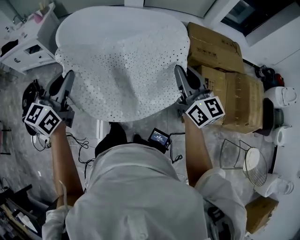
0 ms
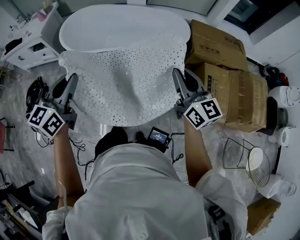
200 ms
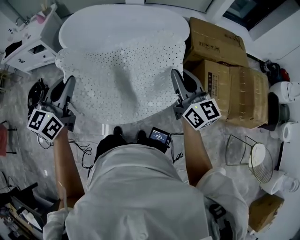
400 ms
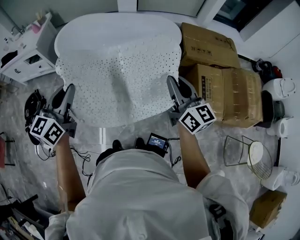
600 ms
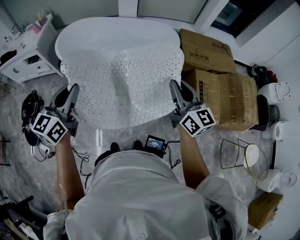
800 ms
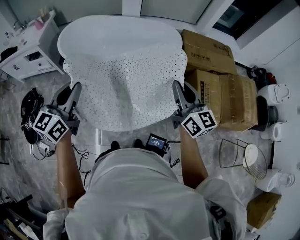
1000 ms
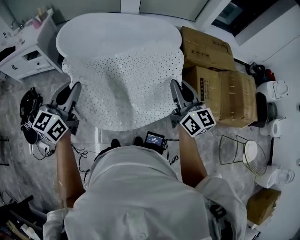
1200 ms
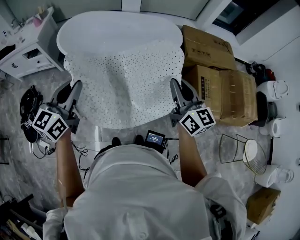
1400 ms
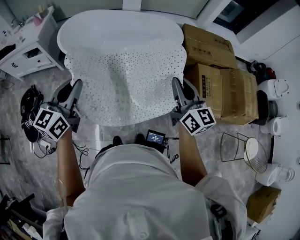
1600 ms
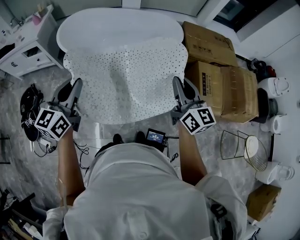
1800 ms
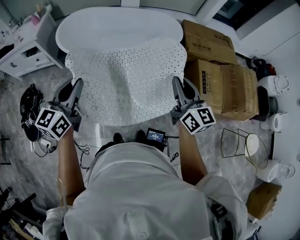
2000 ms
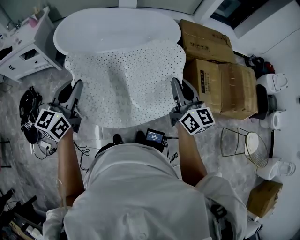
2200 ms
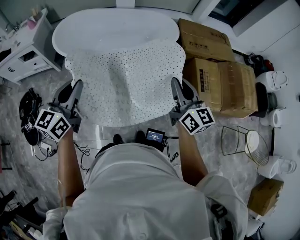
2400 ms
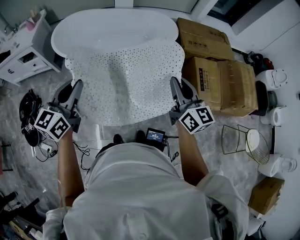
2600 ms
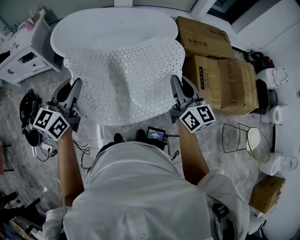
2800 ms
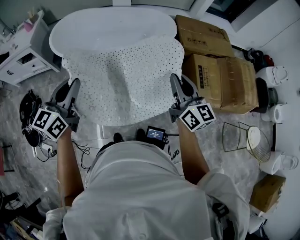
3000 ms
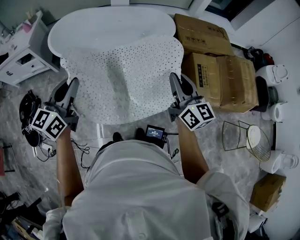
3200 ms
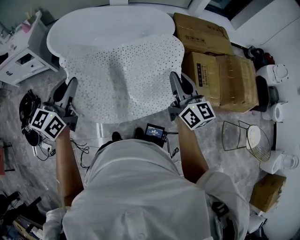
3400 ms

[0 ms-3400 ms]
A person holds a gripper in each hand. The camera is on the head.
0 ms to 1600 ms: The grippers both shift backward and to the left by roughly 10 cm.
1600 ms to 3400 ms: The left gripper moves some 5 cm, while the right gripper shifts some 5 cm to the right.

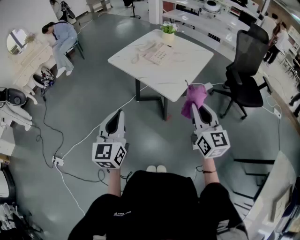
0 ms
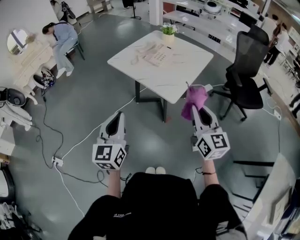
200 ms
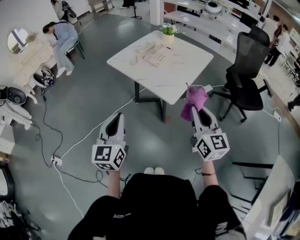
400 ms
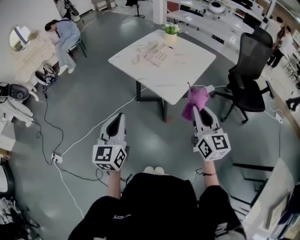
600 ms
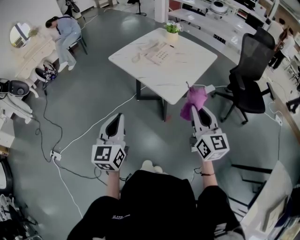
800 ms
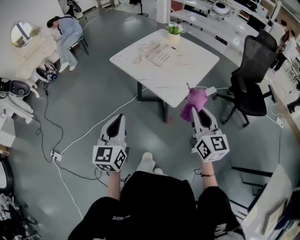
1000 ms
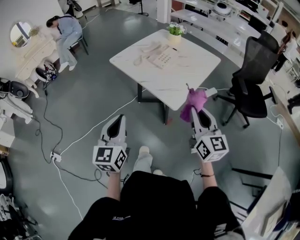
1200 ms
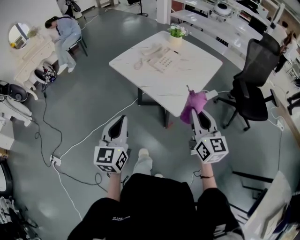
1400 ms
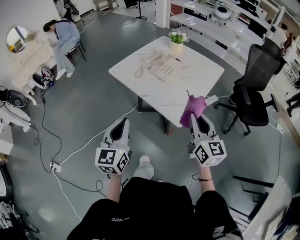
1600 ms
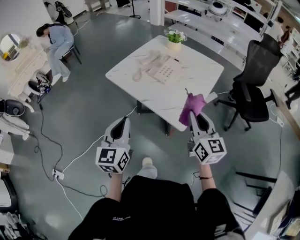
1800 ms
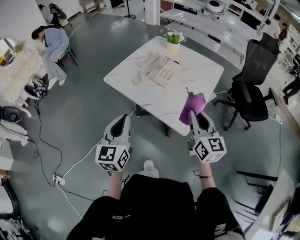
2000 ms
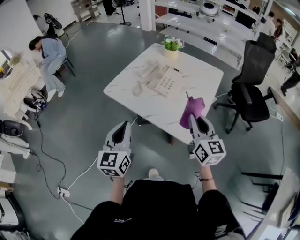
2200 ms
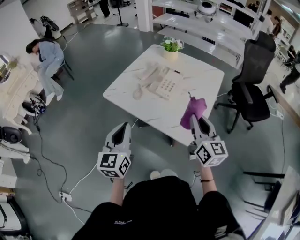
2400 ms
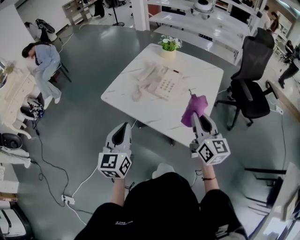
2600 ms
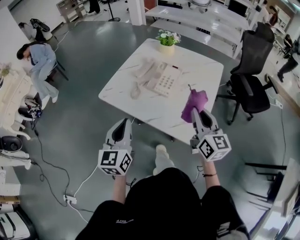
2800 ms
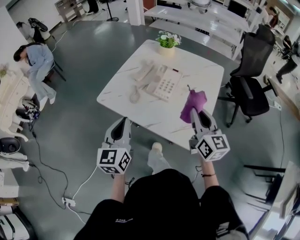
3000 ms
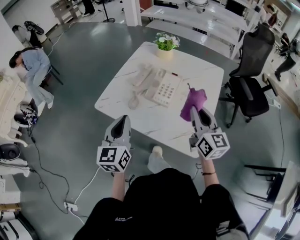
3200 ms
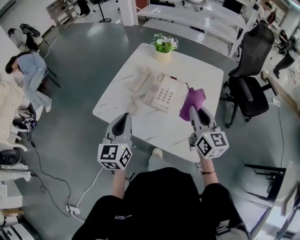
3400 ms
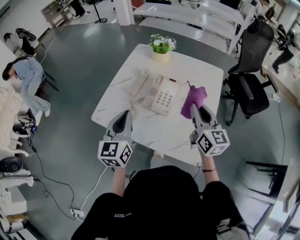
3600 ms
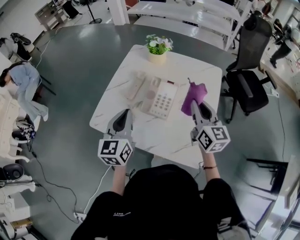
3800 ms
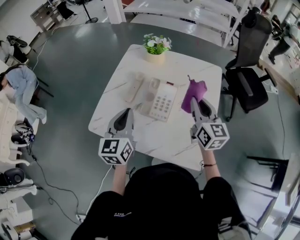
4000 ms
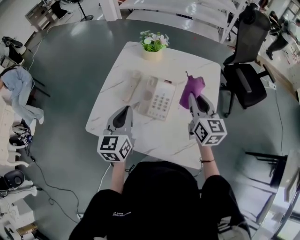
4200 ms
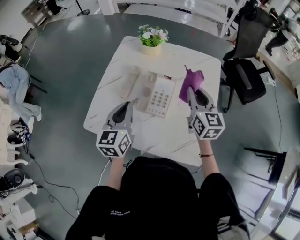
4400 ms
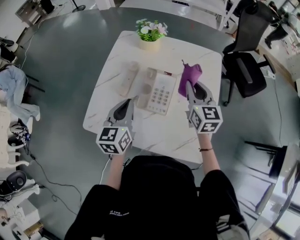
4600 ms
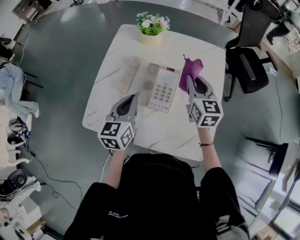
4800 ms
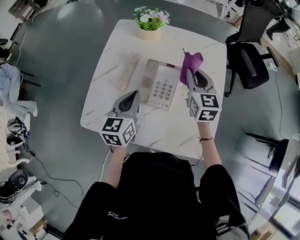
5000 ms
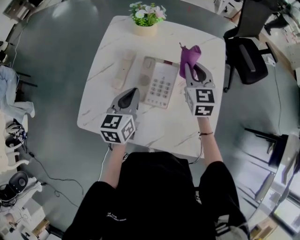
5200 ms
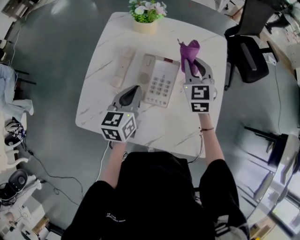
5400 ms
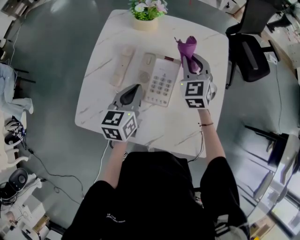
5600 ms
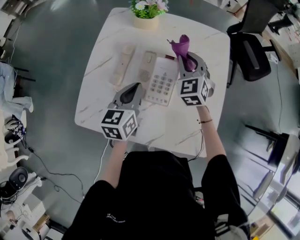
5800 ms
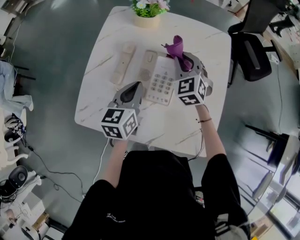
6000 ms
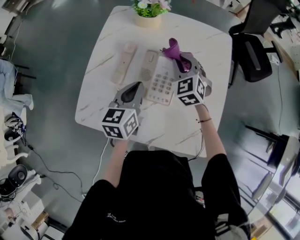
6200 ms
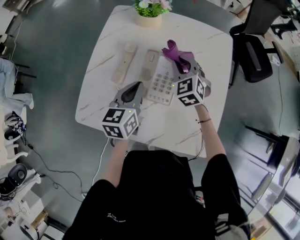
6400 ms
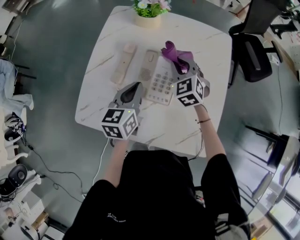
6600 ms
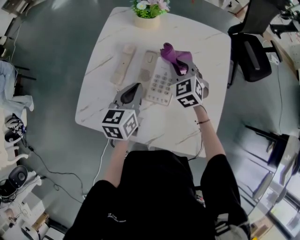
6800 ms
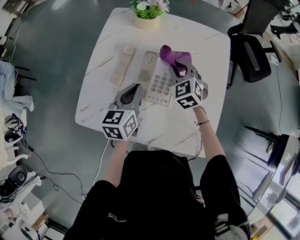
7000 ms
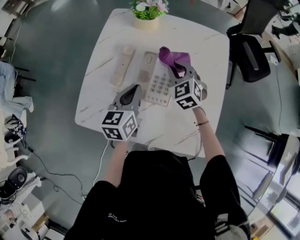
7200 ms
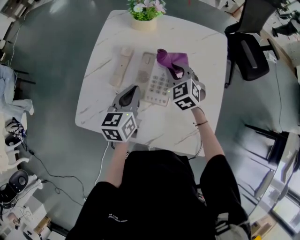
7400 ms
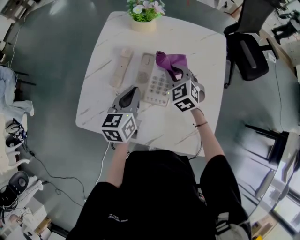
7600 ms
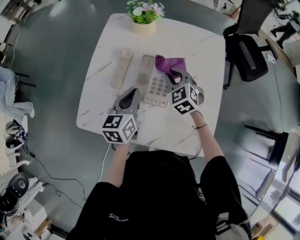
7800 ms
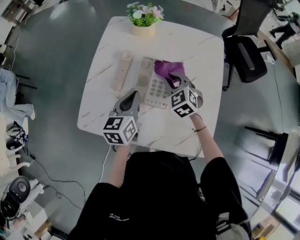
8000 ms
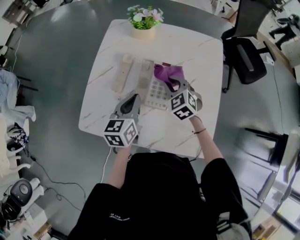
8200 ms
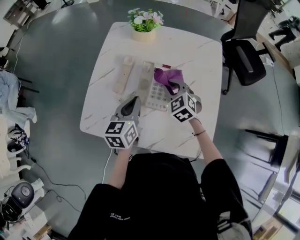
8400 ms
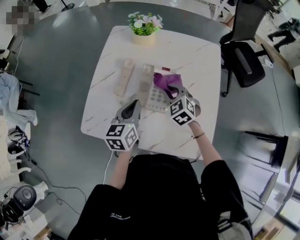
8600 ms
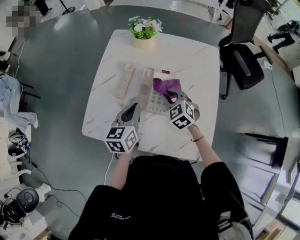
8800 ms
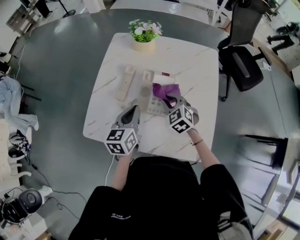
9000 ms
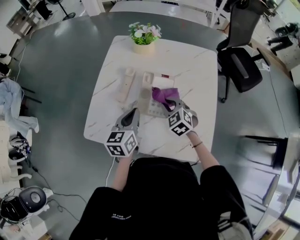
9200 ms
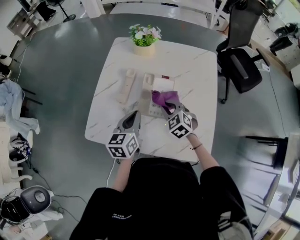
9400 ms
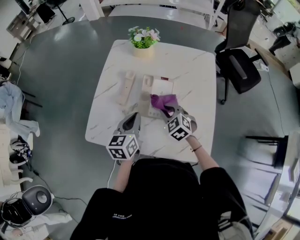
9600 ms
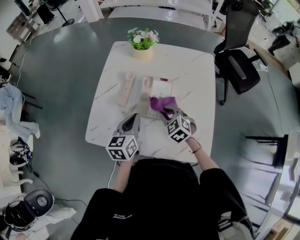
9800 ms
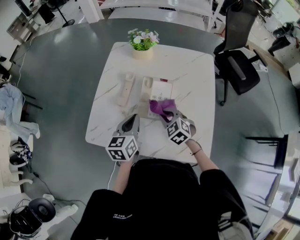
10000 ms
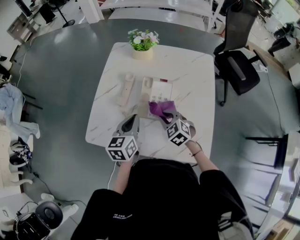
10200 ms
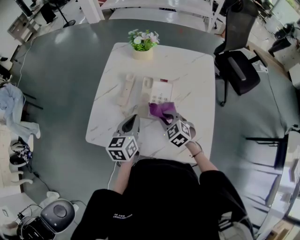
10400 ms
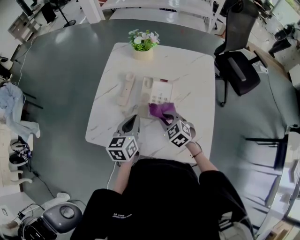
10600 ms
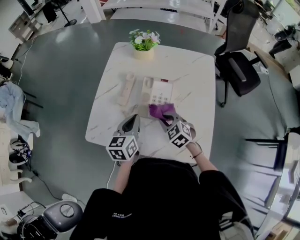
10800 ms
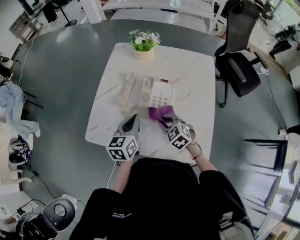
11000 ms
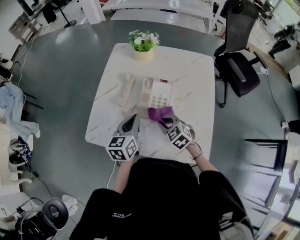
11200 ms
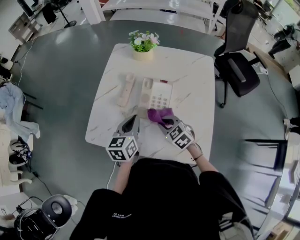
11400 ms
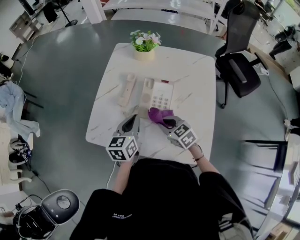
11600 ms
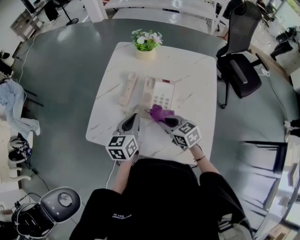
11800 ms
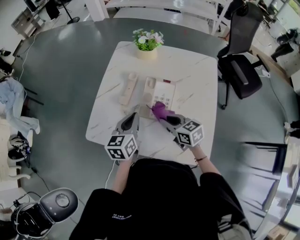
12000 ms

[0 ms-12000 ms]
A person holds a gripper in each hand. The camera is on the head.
0 ms to 1600 ms: Both grippers travel together forward, roughly 15 cm.
1600 ms to 3000 ms: Both grippers move forward, about 20 cm.
3000 ms to 4400 ms: The two grippers go about 25 cm forward.
4400 ms to 6000 ms: The left gripper shifts some 10 cm downward and forward, while the right gripper travels downward, forward and to the left by roughly 15 cm, and rolls counterclockwise, seen from behind, by about 40 degrees.
6000 ms to 7600 ms: The right gripper moves roughly 5 cm.
7600 ms to 9000 ms: The right gripper shifts approximately 5 cm backward.
9000 ms to 10400 ms: The right gripper moves backward, some 5 cm.
10400 ms to 12000 ms: The right gripper rotates approximately 40 degrees.

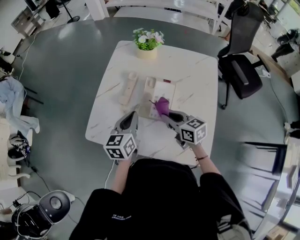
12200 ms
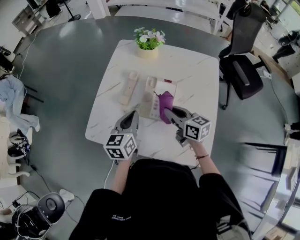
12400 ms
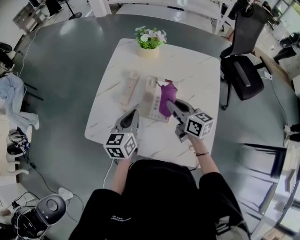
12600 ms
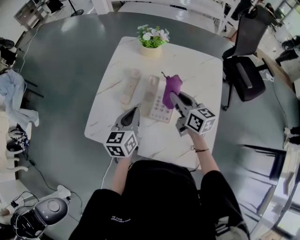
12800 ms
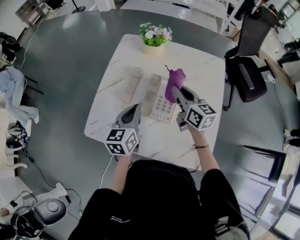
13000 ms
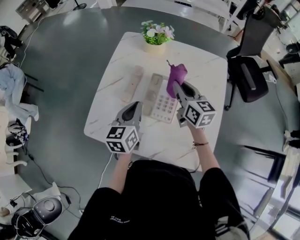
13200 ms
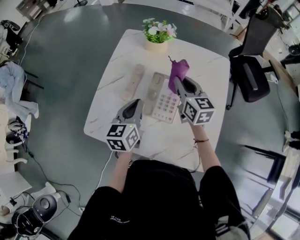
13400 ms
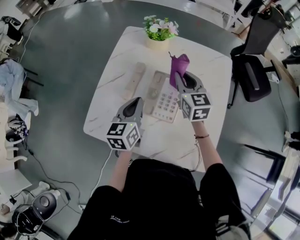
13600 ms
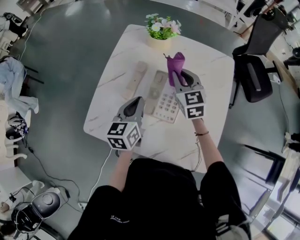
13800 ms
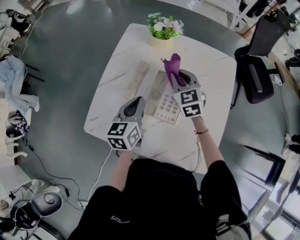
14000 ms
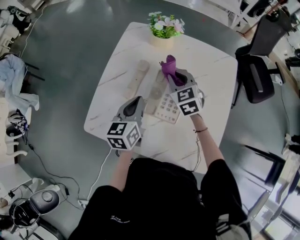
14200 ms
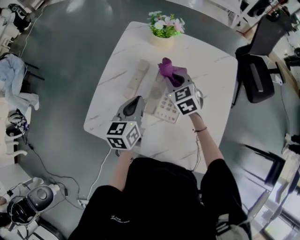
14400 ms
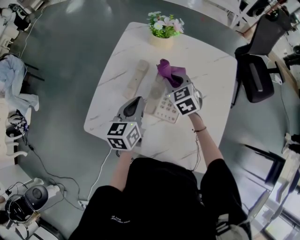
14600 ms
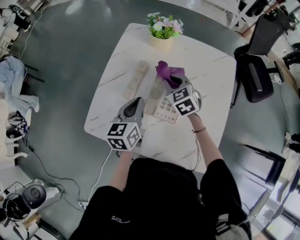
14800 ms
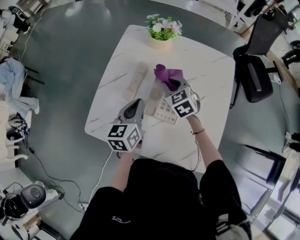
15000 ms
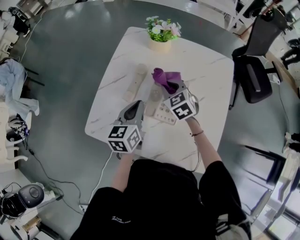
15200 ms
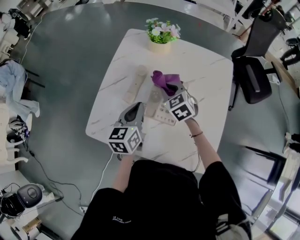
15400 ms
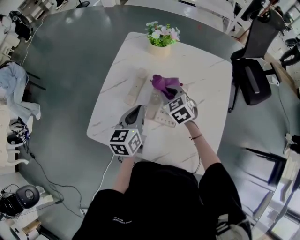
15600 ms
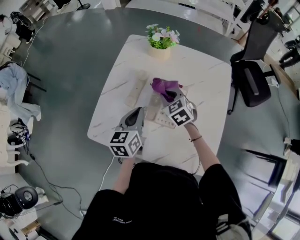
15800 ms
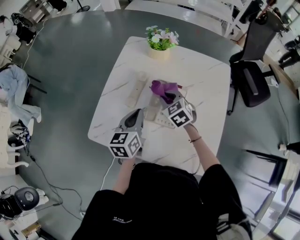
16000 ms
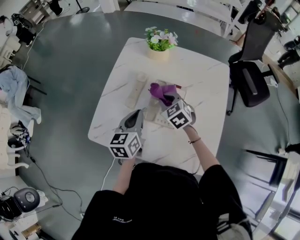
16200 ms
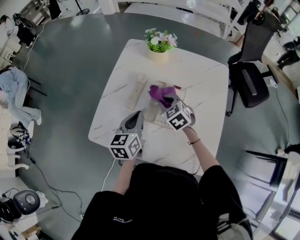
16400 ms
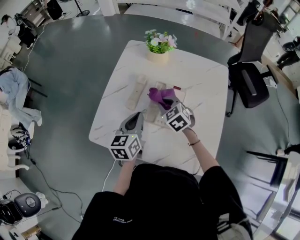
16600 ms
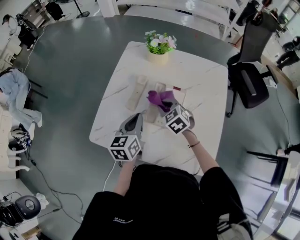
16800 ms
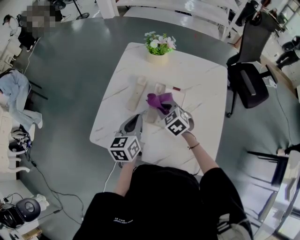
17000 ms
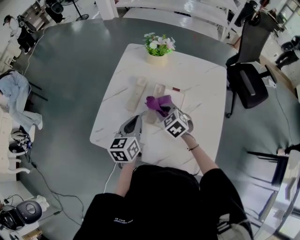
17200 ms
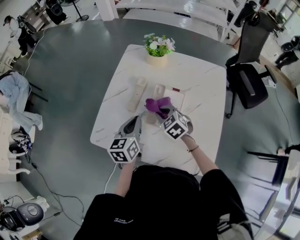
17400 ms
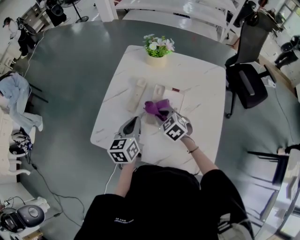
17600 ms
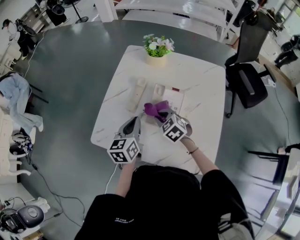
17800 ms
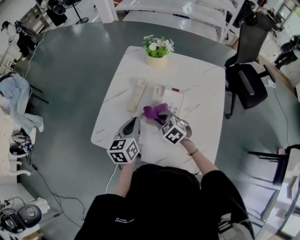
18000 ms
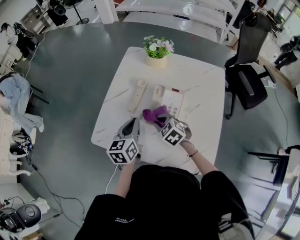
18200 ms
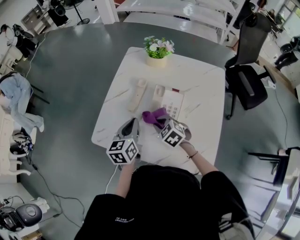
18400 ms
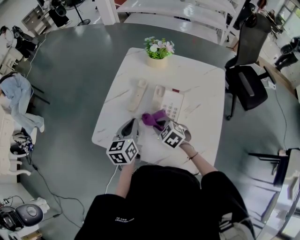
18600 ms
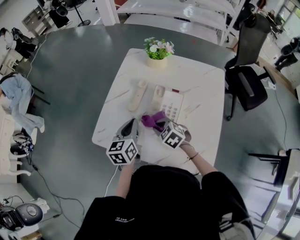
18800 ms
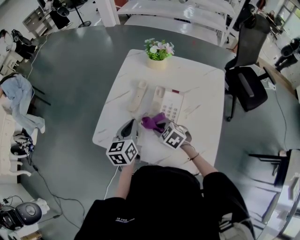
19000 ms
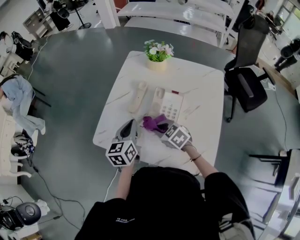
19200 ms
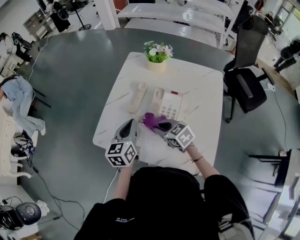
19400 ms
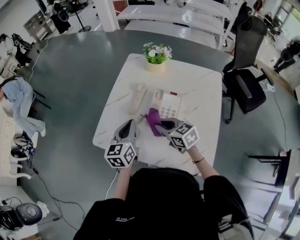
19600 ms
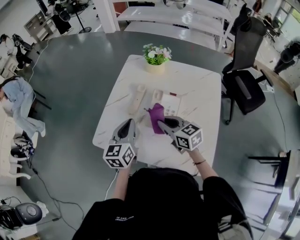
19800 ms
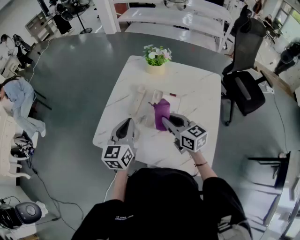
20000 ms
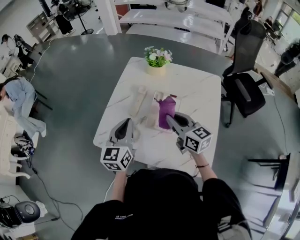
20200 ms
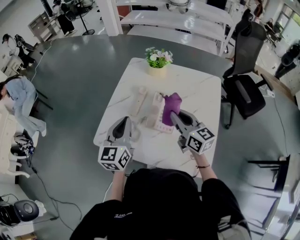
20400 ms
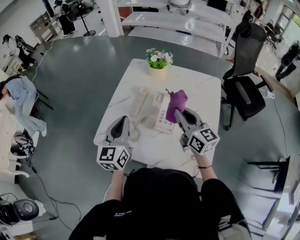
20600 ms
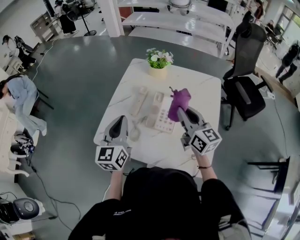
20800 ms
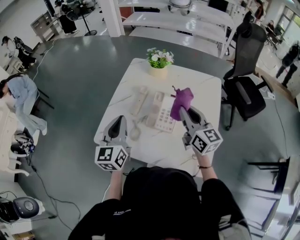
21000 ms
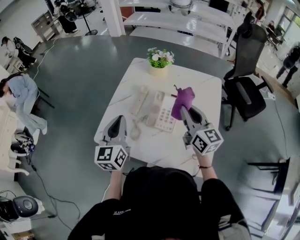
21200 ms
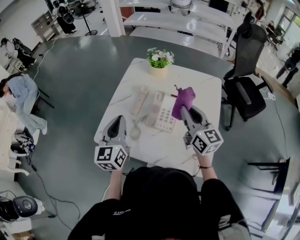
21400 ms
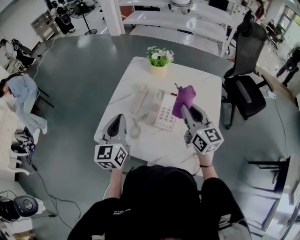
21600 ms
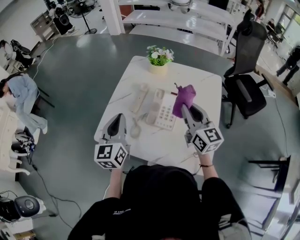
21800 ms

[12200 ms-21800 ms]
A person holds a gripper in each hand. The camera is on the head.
12200 ms to 13800 ms: The right gripper travels forward by some 20 cm, and rotates roughly 40 degrees; the left gripper moves forward, roughly 5 cm.
13800 ms to 15400 ms: The right gripper is displaced downward by roughly 10 cm, and turns by some 20 degrees.
15400 ms to 17000 ms: The right gripper shifts roughly 5 cm backward.
17000 ms to 18600 ms: The right gripper heads backward, covering about 10 cm.
18600 ms to 20200 ms: The left gripper goes about 10 cm upward. Meanwhile the right gripper is displaced upward and to the right by about 20 cm, and points its fingers roughly 40 degrees further upward.
20200 ms to 21800 ms: The right gripper goes some 10 cm upward and to the right.
